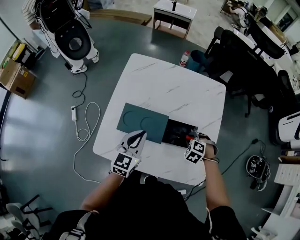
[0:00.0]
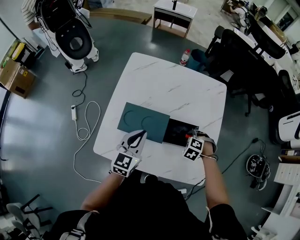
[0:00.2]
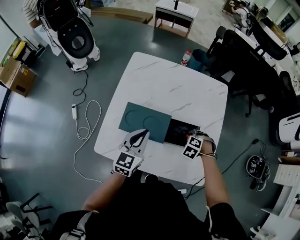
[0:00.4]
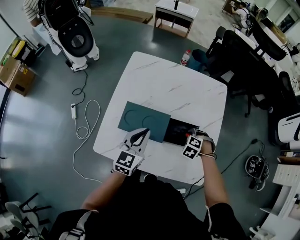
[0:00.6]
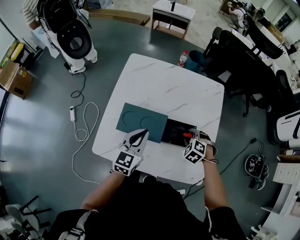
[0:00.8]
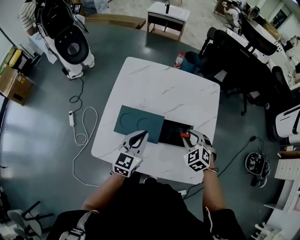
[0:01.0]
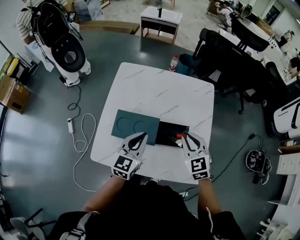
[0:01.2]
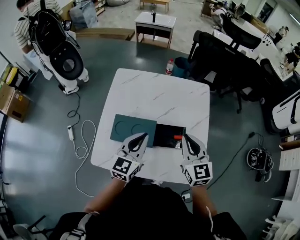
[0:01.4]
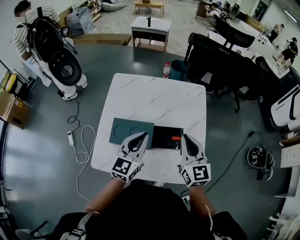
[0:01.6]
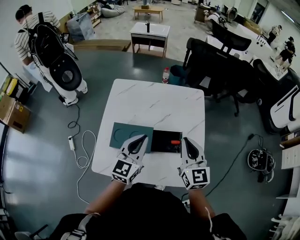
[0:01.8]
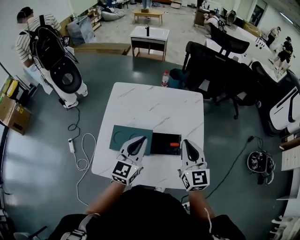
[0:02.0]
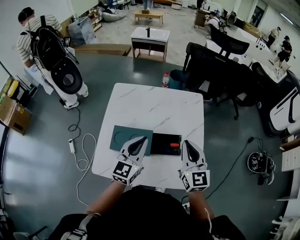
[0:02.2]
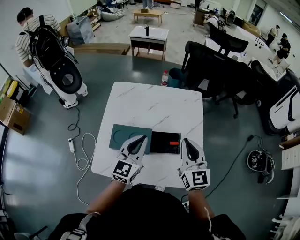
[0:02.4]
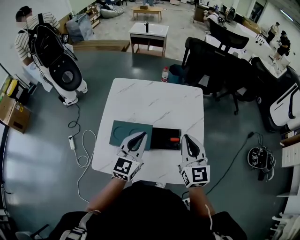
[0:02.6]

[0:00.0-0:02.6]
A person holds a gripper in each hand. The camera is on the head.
0:00.0 to 0:01.2: The right gripper heads upward, covering some 20 cm, and tilts its fingers about 40 degrees upward; the left gripper shifts by about 5 cm.
0:01.2 to 0:02.6: The grippers both shift upward by about 10 cm. The right gripper rotates roughly 30 degrees.

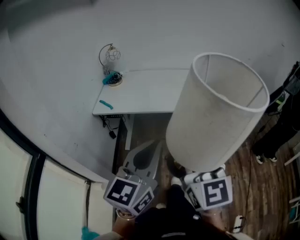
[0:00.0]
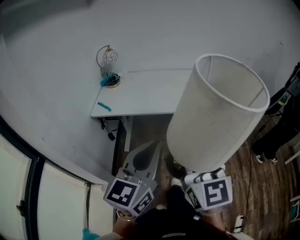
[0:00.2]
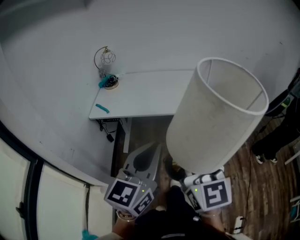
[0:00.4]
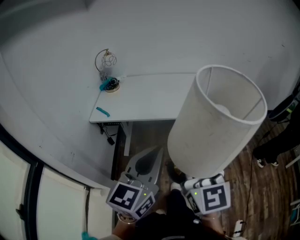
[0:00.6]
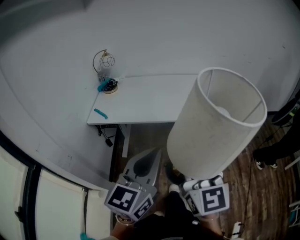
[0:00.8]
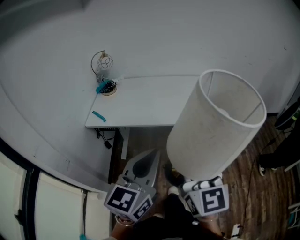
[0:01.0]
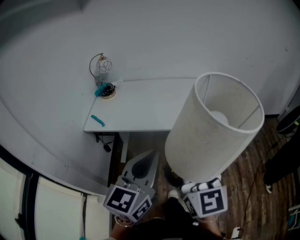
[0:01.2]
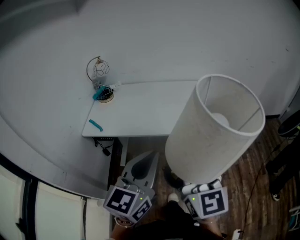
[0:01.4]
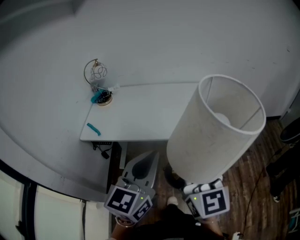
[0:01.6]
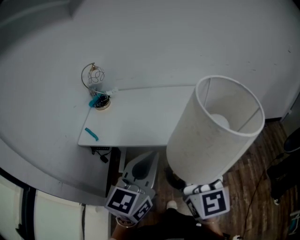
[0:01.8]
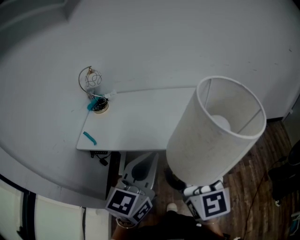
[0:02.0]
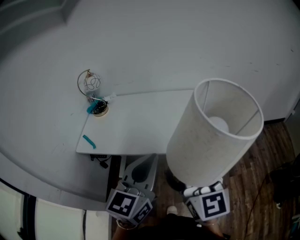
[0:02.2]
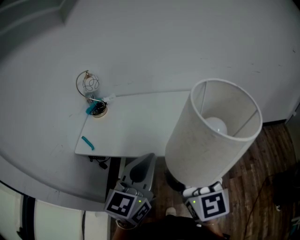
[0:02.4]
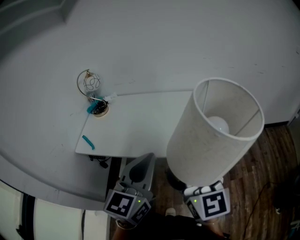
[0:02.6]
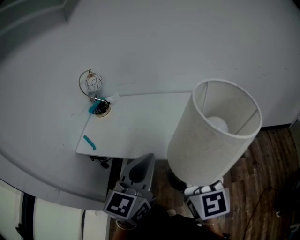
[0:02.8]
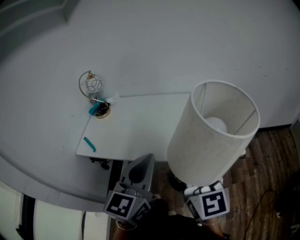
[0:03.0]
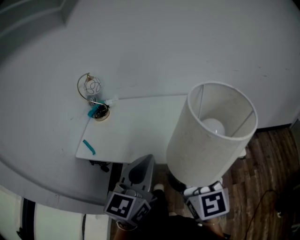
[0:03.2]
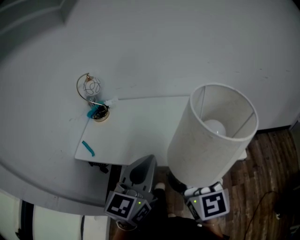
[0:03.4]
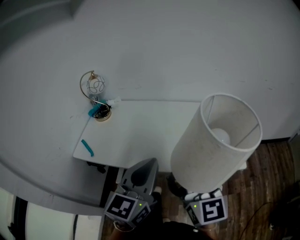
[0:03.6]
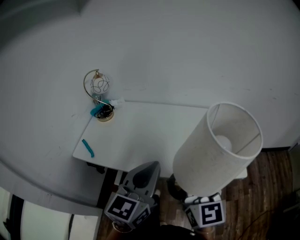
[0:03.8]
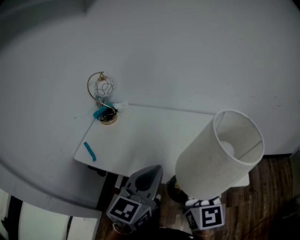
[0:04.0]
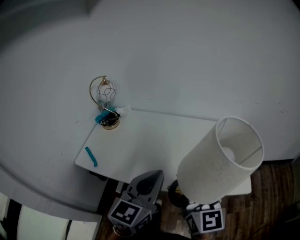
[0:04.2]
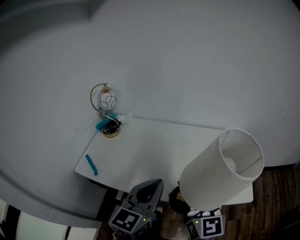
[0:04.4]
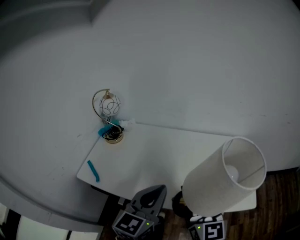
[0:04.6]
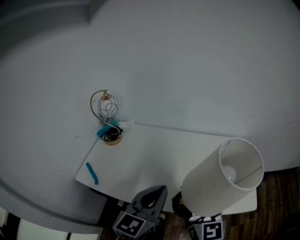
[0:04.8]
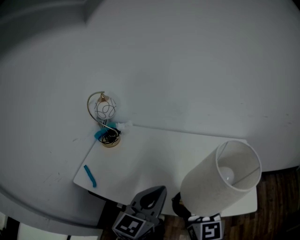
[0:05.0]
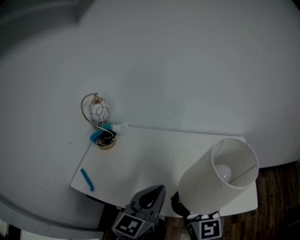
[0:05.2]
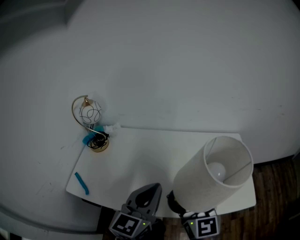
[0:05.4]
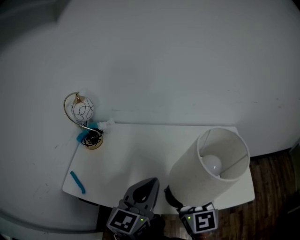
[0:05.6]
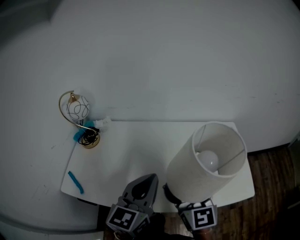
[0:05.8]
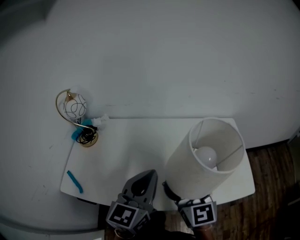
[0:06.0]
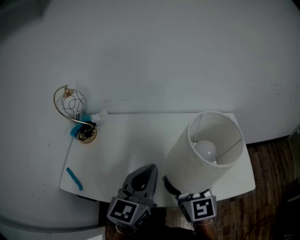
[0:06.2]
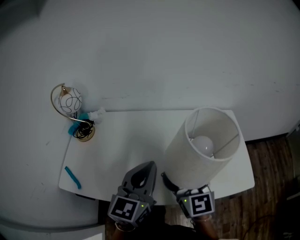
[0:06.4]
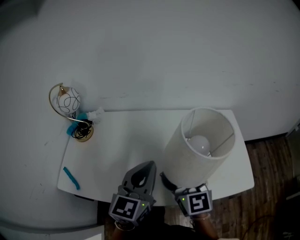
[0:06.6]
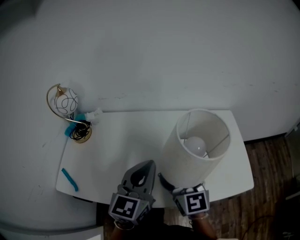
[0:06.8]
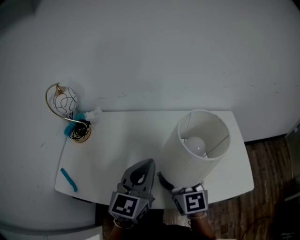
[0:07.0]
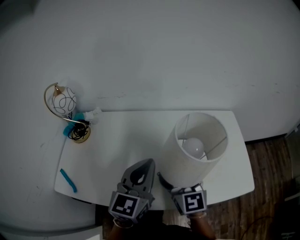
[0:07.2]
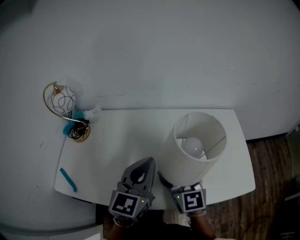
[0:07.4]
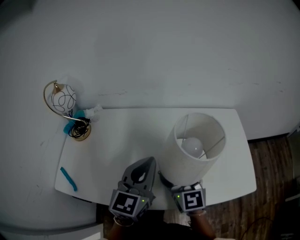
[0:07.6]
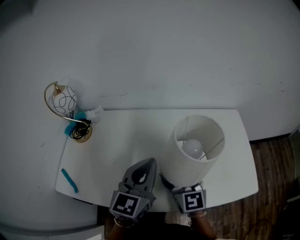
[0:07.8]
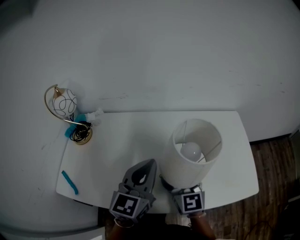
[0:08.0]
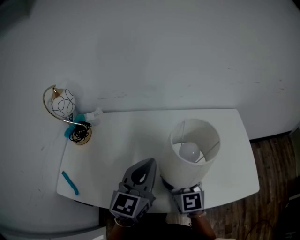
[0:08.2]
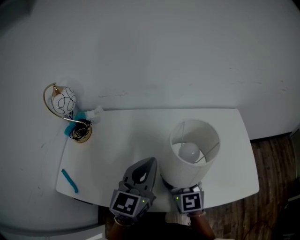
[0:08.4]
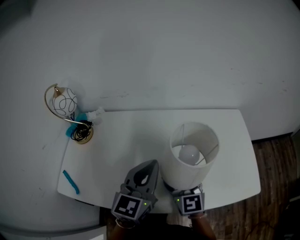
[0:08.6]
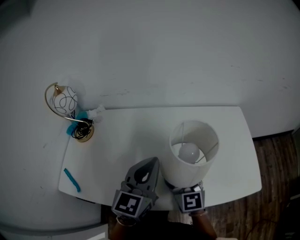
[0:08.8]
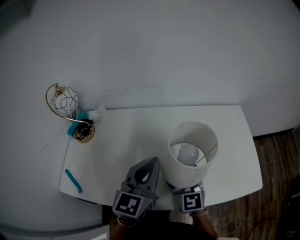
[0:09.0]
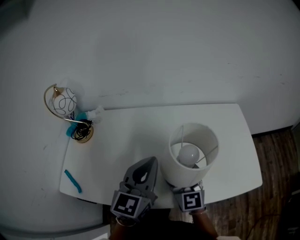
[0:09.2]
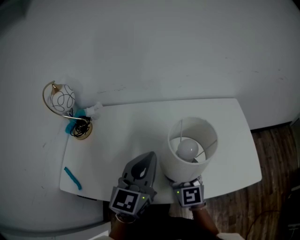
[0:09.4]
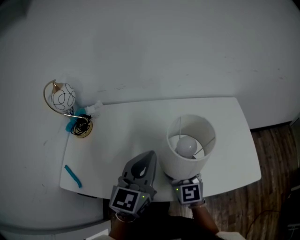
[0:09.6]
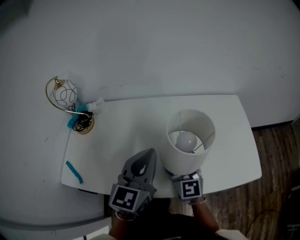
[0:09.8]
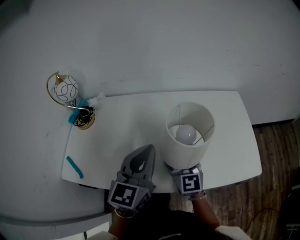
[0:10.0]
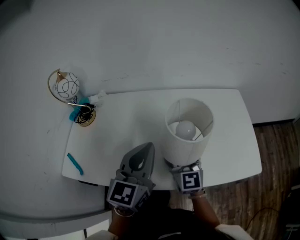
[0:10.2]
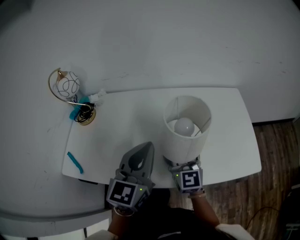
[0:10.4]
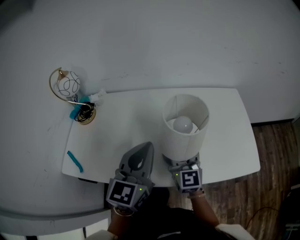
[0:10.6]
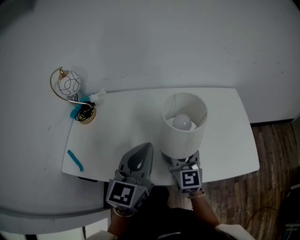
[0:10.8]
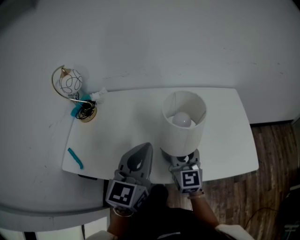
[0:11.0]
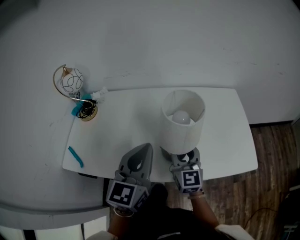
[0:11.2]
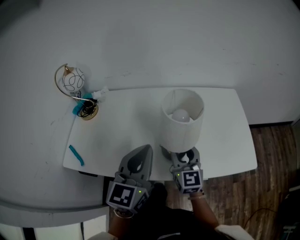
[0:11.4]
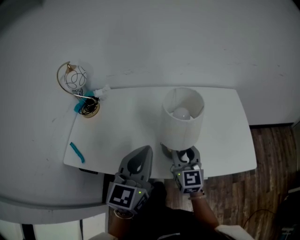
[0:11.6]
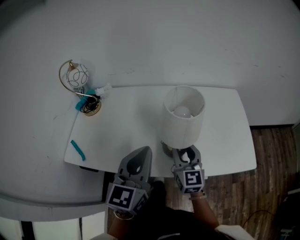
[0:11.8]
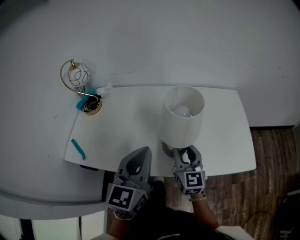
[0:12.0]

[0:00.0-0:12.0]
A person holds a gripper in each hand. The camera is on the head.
0:00.0 to 0:01.6: Both grippers move forward, approximately 20 cm.
0:01.6 to 0:03.0: The grippers both shift forward by some 15 cm.
0:03.0 to 0:04.4: Both grippers move forward and to the left, approximately 15 cm.
0:04.4 to 0:06.0: The grippers both shift forward by some 15 cm.
0:06.0 to 0:07.6: The left gripper is displaced forward by some 5 cm; the right gripper goes approximately 10 cm downward and forward.
0:07.6 to 0:09.0: There are only small adjustments of the grippers.
0:09.0 to 0:10.4: The left gripper shifts about 5 cm backward.
0:10.4 to 0:12.0: The grippers both shift backward by approximately 5 cm.

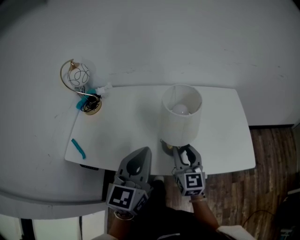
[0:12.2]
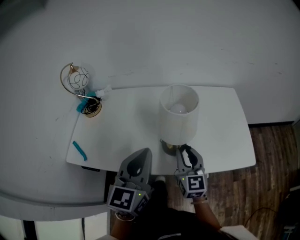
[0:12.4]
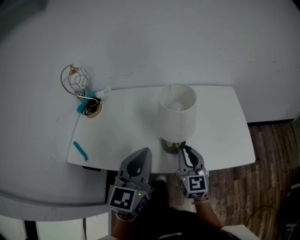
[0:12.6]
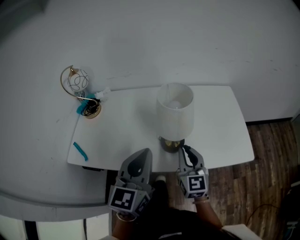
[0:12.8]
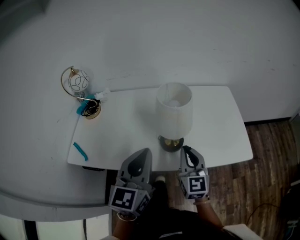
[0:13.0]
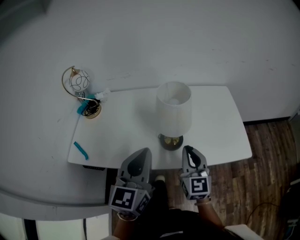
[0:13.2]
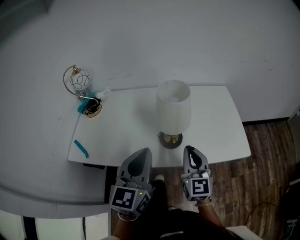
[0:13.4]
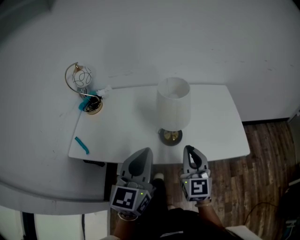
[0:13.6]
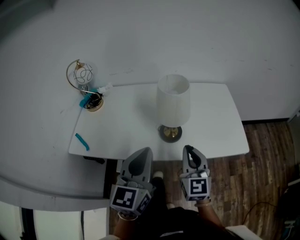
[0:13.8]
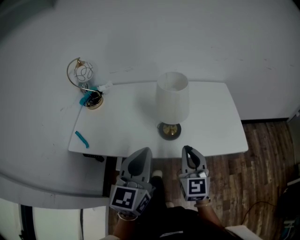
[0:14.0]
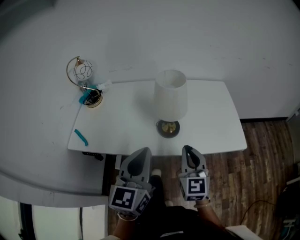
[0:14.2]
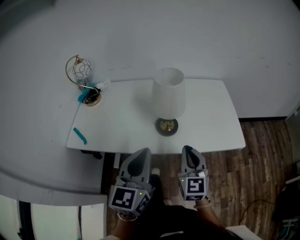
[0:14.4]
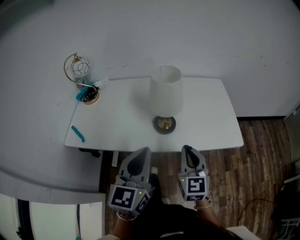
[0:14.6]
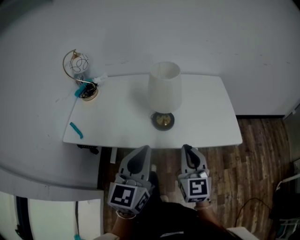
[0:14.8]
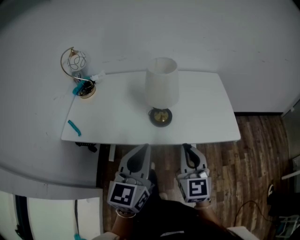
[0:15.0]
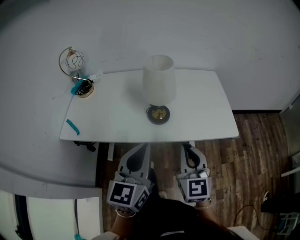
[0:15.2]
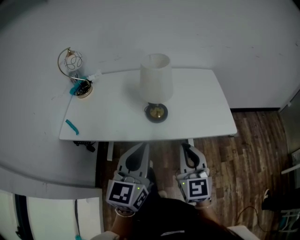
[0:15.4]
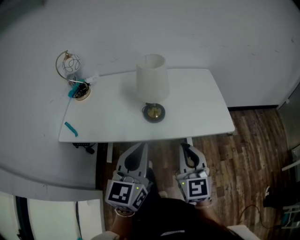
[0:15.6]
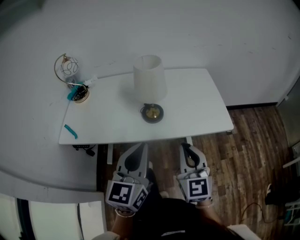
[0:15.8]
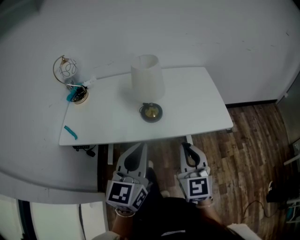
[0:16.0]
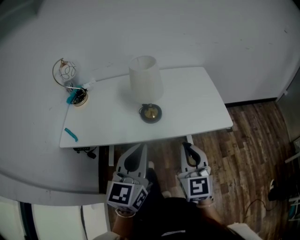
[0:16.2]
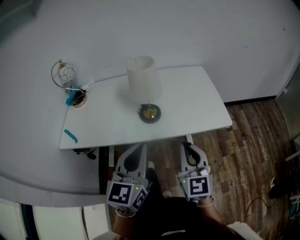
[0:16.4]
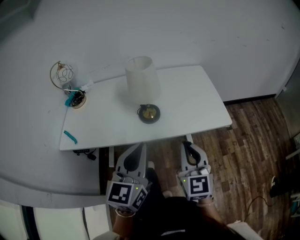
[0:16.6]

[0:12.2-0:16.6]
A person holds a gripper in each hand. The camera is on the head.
0:12.2 to 0:13.6: The right gripper moves backward and upward, some 10 cm, and closes, while the left gripper shifts some 10 cm backward.
0:13.6 to 0:15.2: Both grippers travel together backward, roughly 10 cm.
0:15.2 to 0:16.6: The grippers stay close to where they were, moving slightly.

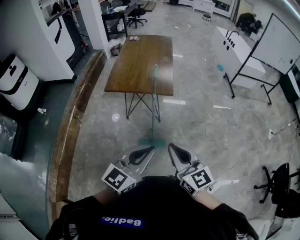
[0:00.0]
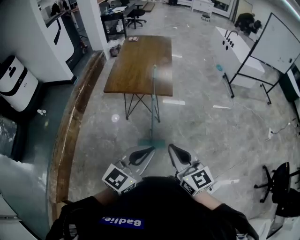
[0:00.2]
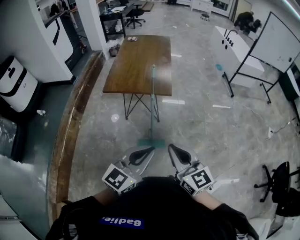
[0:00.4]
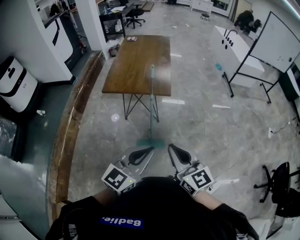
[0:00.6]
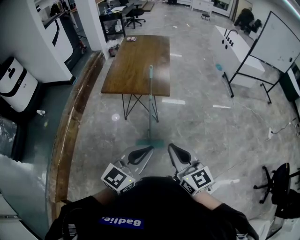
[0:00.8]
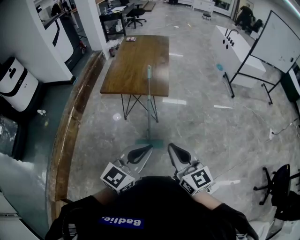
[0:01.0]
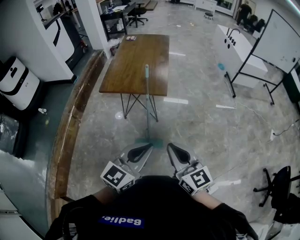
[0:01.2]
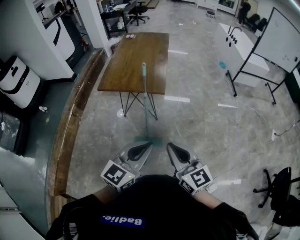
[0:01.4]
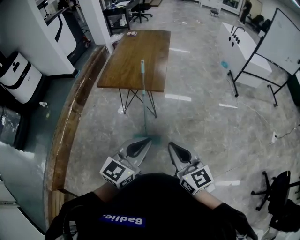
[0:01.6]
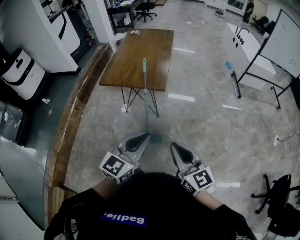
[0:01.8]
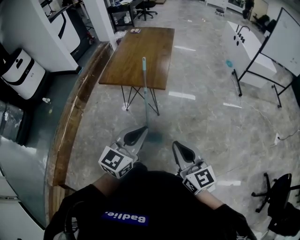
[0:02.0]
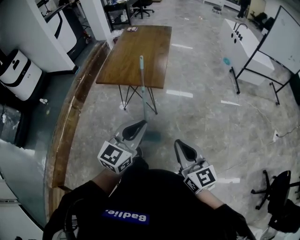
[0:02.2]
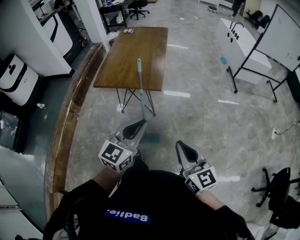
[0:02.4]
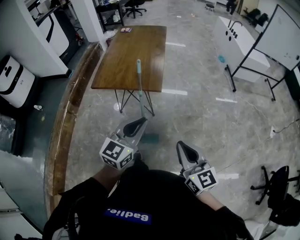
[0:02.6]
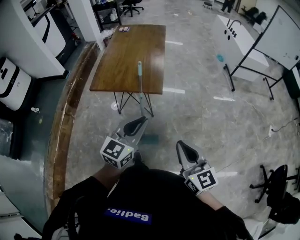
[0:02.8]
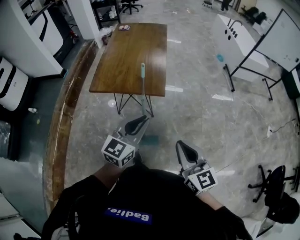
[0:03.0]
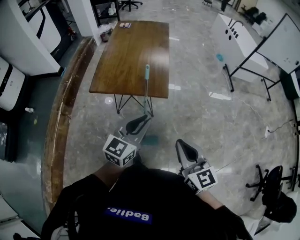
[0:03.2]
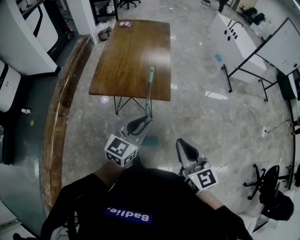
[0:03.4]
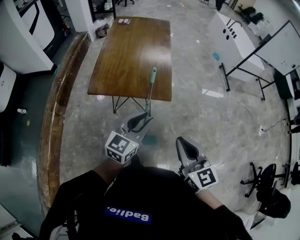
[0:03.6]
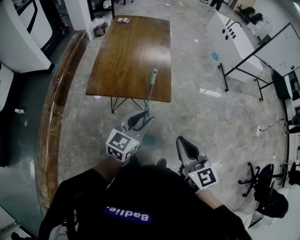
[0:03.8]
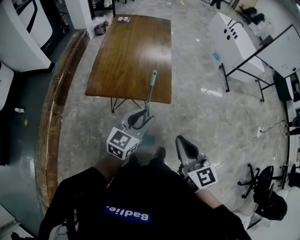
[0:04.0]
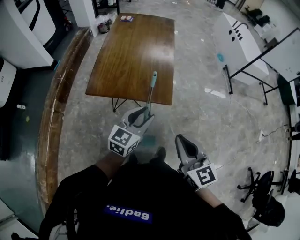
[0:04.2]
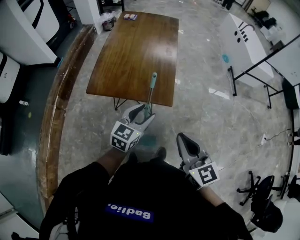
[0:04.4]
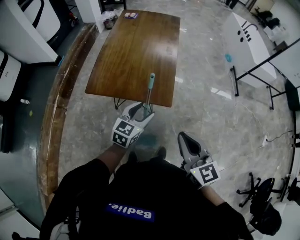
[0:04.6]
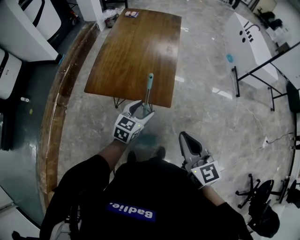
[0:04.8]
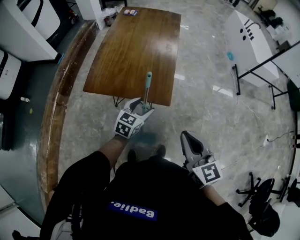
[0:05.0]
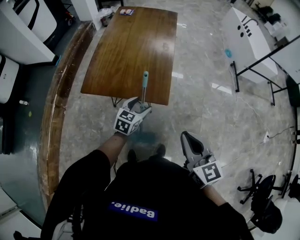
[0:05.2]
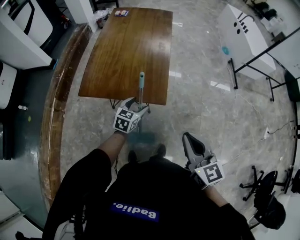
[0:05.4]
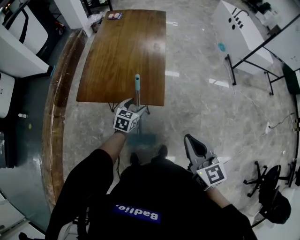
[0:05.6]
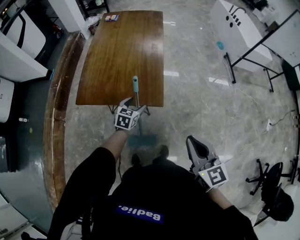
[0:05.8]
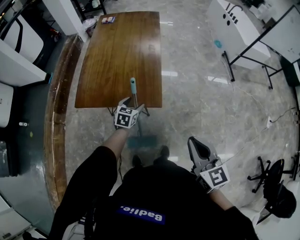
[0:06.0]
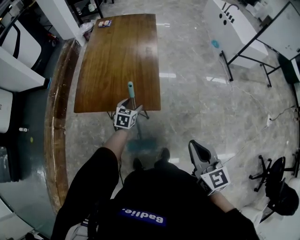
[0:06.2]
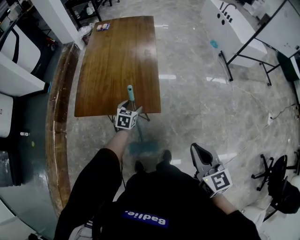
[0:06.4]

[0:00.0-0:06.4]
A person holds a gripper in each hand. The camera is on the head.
0:00.0 to 0:01.6: Both grippers move to the right, about 10 cm.
0:01.6 to 0:03.2: The left gripper is displaced forward and to the left by approximately 25 cm; the right gripper shifts about 15 cm forward and to the left.
0:03.2 to 0:04.8: The left gripper moves forward and downward, some 25 cm, and opens up. Meanwhile the right gripper travels forward by some 15 cm.
0:04.8 to 0:06.4: The right gripper goes some 10 cm to the right; the left gripper moves downward and forward, about 15 cm.
